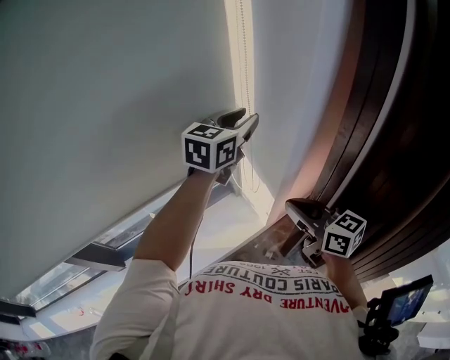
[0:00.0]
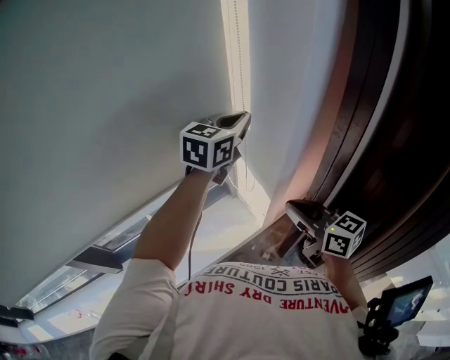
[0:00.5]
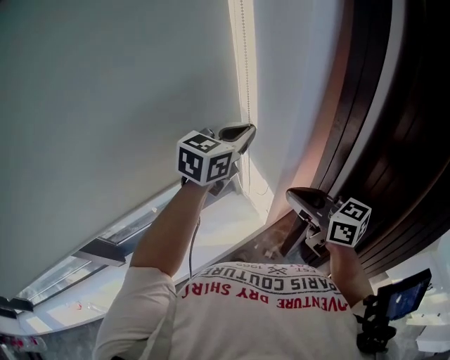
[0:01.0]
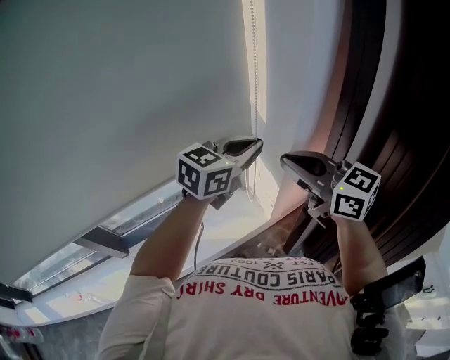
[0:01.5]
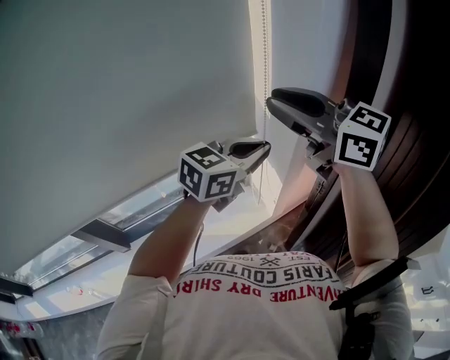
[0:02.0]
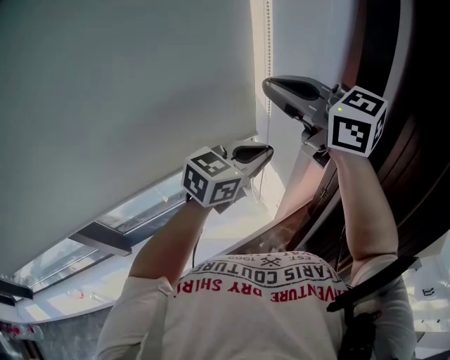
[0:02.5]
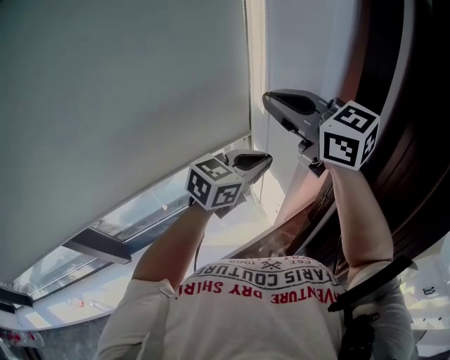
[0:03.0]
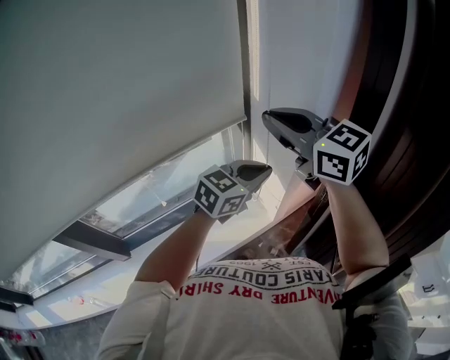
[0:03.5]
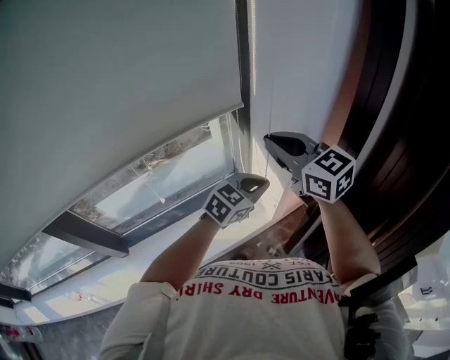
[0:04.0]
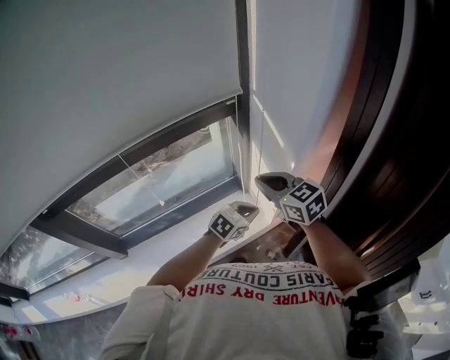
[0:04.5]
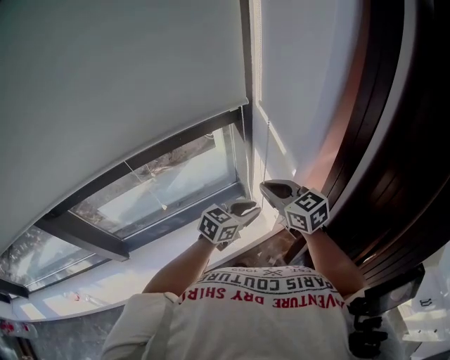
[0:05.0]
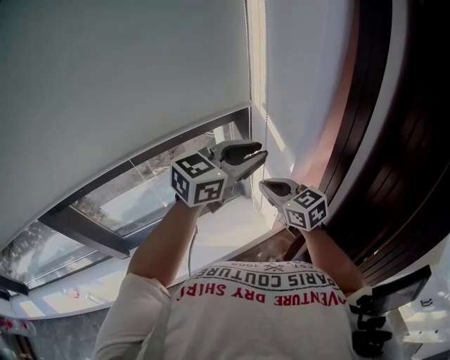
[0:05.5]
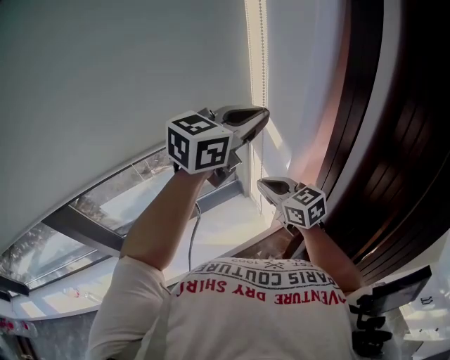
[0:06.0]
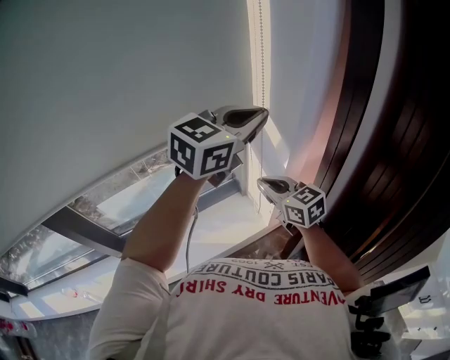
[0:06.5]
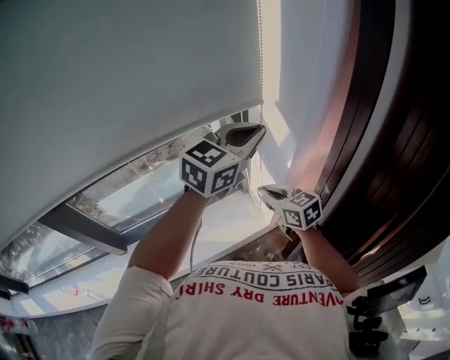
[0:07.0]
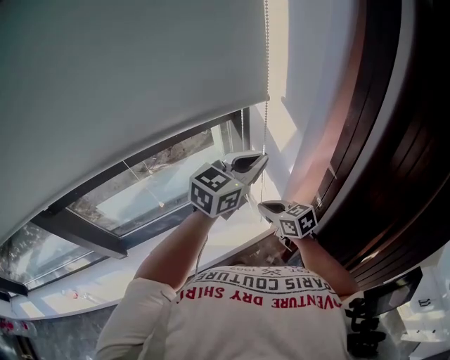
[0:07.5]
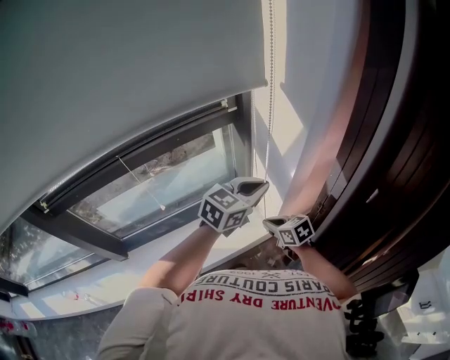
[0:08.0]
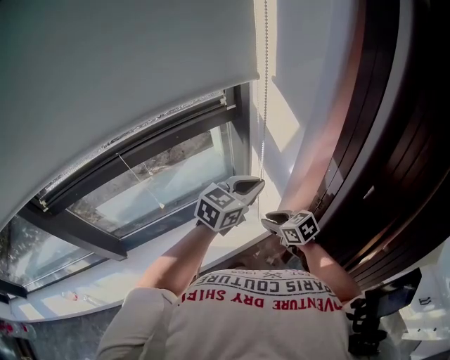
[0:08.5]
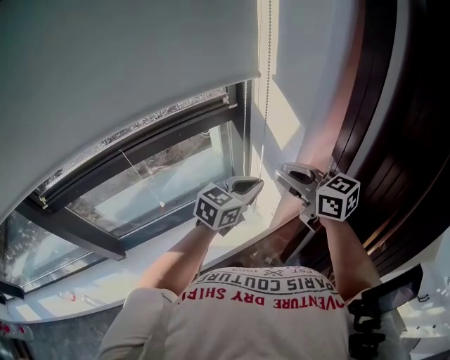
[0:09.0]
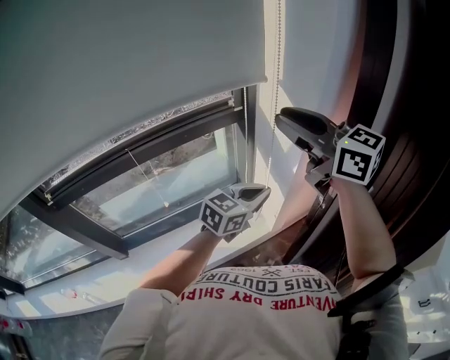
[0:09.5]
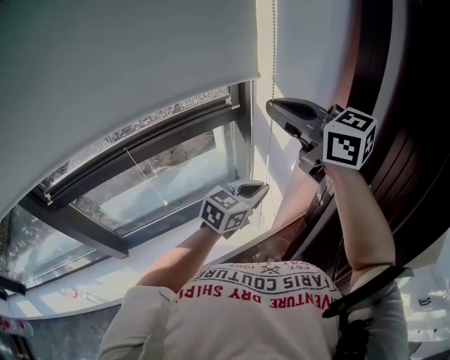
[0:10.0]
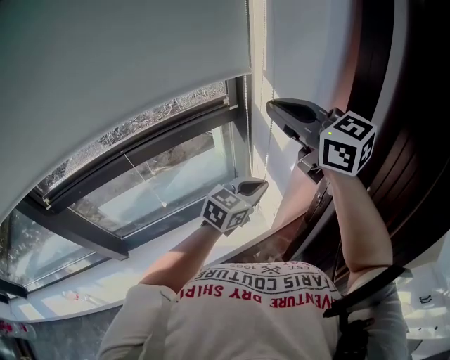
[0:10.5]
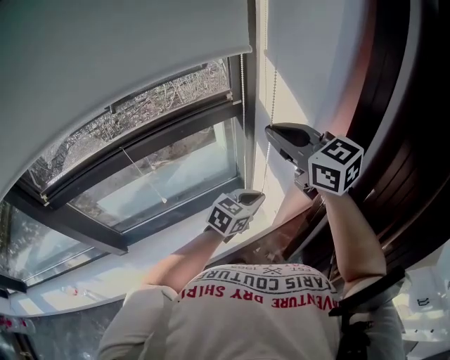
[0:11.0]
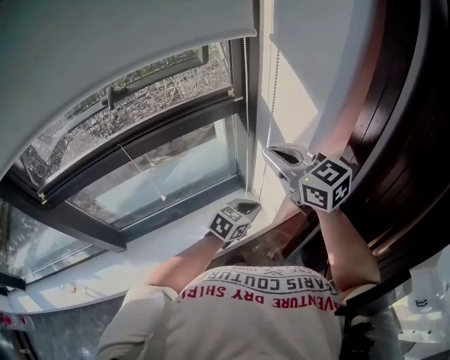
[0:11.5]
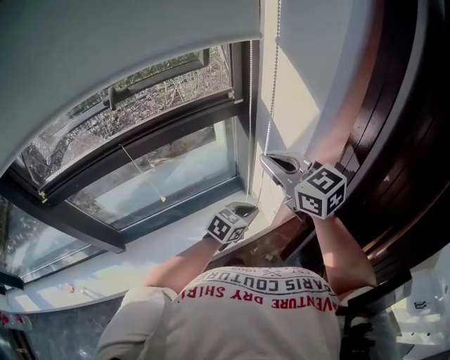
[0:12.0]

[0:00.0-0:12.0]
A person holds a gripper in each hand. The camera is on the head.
0:00.0 to 0:02.0: The right gripper is displaced upward by some 25 cm, and changes its angle by about 30 degrees. Meanwhile the left gripper goes some 15 cm backward, and closes.
0:02.0 to 0:04.0: Both grippers travel together downward, roughly 15 cm.
0:04.0 to 0:06.0: The right gripper moves downward, some 15 cm, while the left gripper travels upward by some 25 cm.
0:06.0 to 0:08.0: Both grippers travel together downward, approximately 20 cm. The right gripper turns by roughly 30 degrees.
0:08.0 to 0:10.0: The right gripper heads upward, covering about 50 cm, and tilts its fingers some 40 degrees upward.
0:10.0 to 0:12.0: The two grippers go some 15 cm downward.

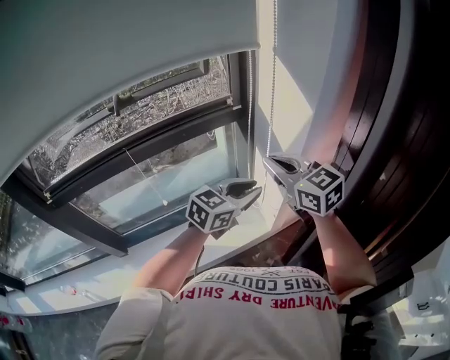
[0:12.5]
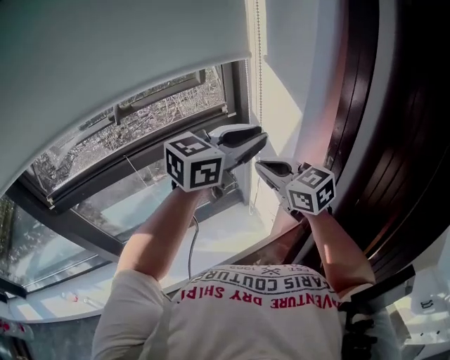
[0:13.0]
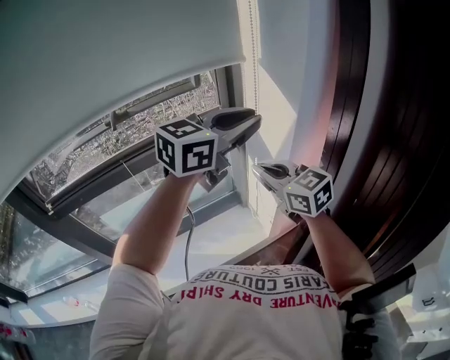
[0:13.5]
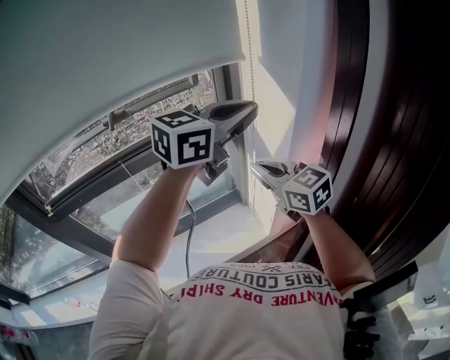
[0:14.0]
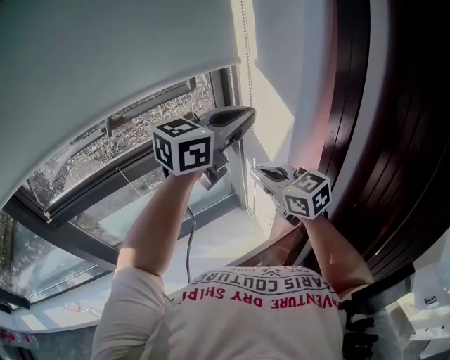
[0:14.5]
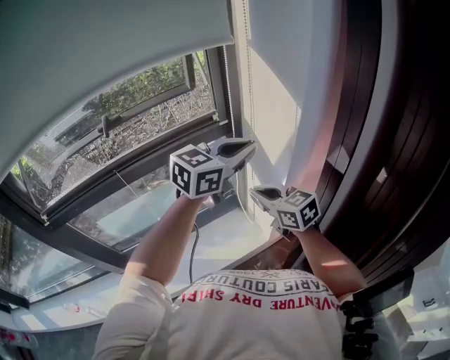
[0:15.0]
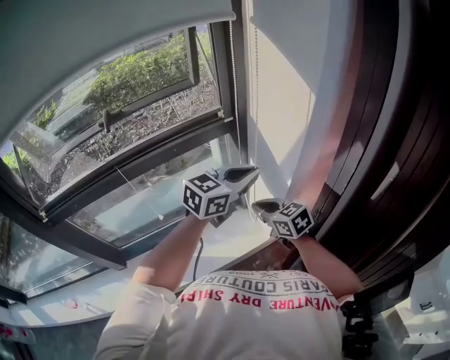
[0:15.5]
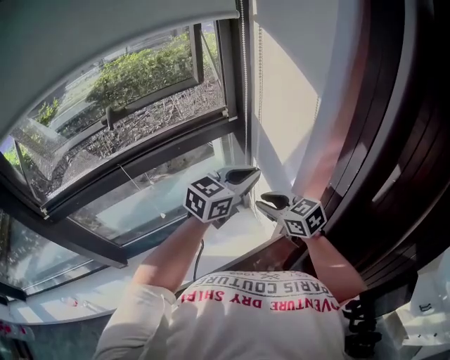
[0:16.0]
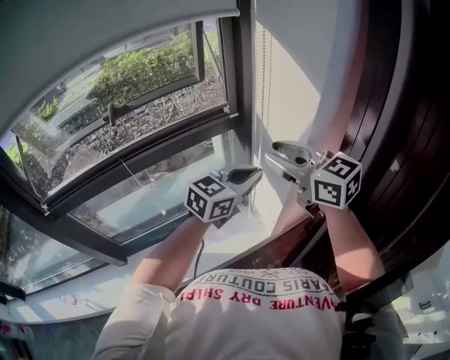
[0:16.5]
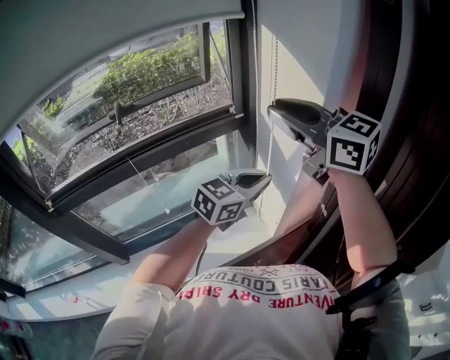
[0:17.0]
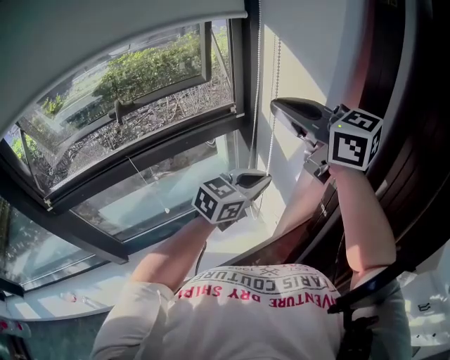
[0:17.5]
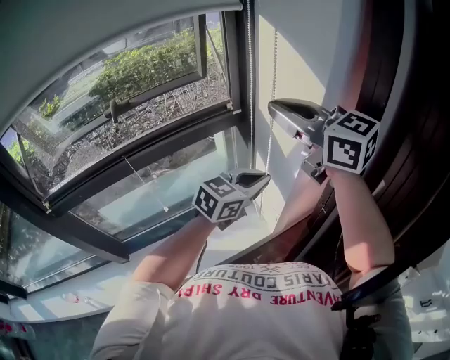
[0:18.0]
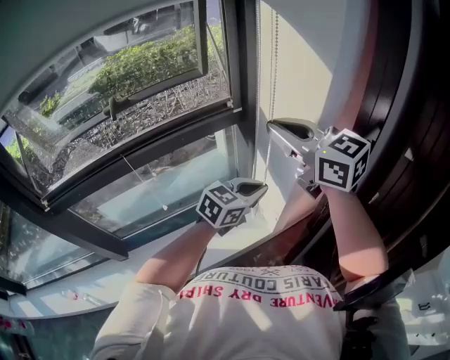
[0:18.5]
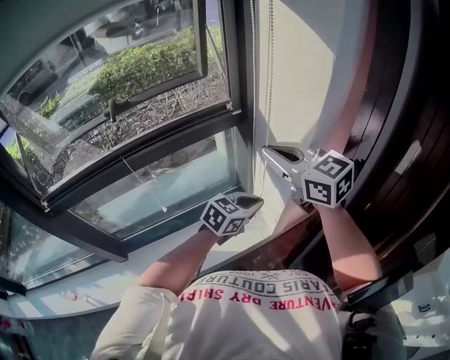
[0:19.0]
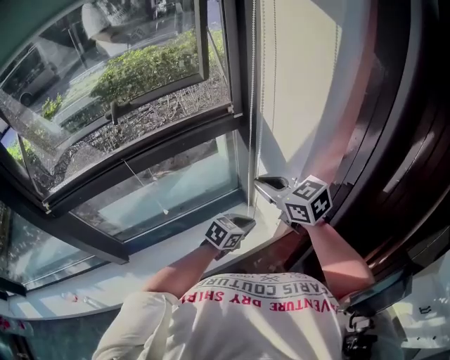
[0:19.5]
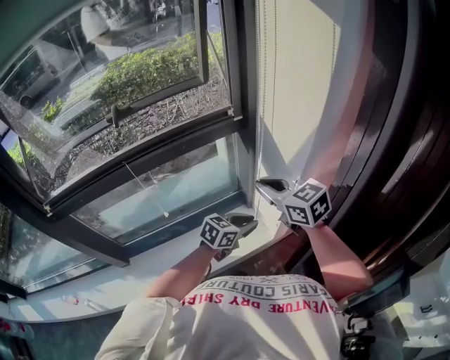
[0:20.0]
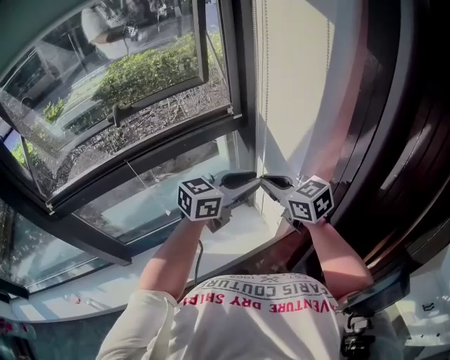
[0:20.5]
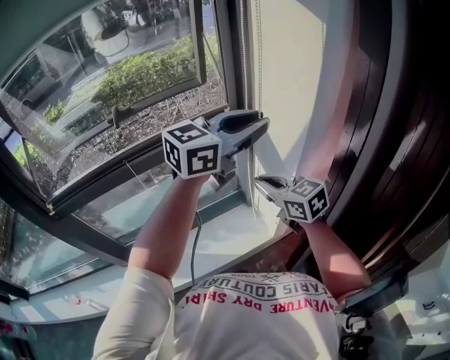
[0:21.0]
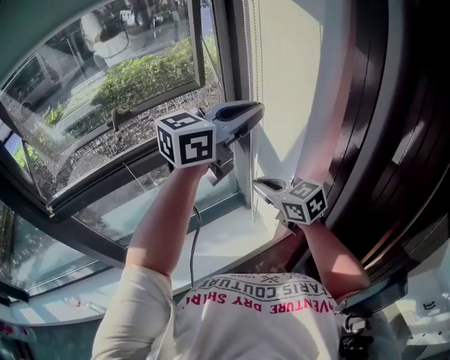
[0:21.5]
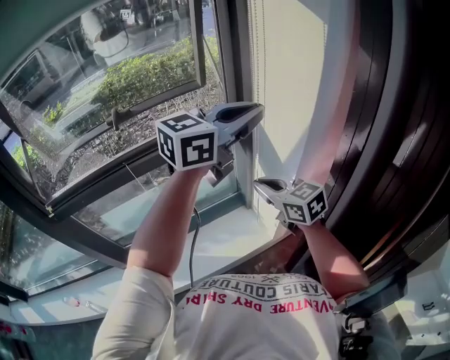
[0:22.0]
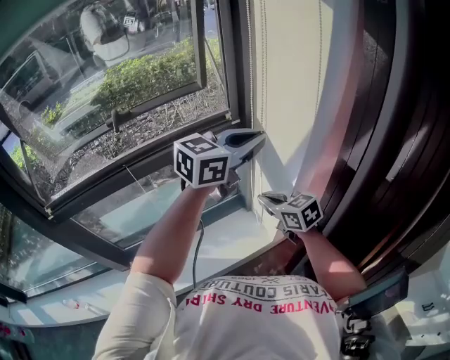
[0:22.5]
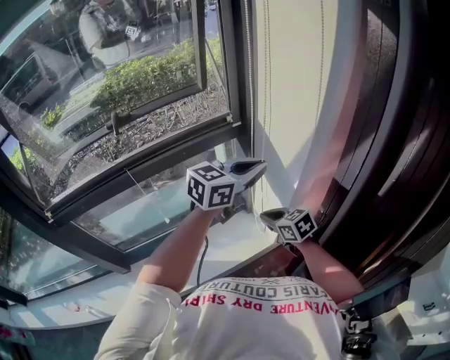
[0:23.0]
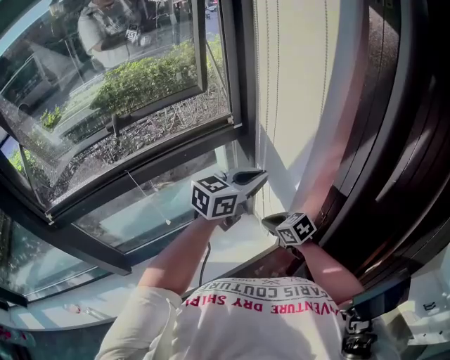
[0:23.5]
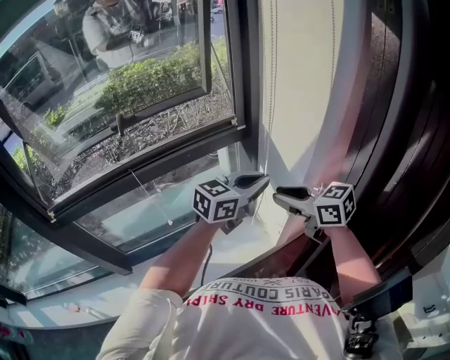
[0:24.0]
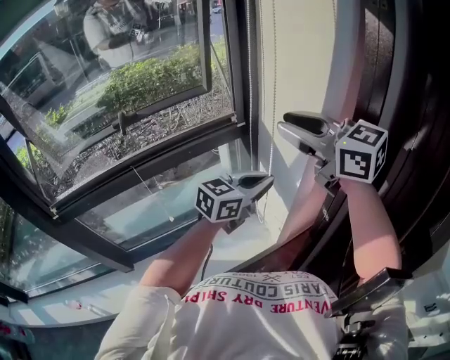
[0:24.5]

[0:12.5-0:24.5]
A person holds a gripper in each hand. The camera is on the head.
0:12.5 to 0:14.5: The left gripper goes approximately 25 cm upward.
0:14.5 to 0:16.5: The left gripper moves downward, approximately 20 cm; the right gripper reaches about 20 cm downward, then returns, and opens up.
0:16.5 to 0:18.5: The right gripper shifts some 5 cm upward, and closes its fingers; the left gripper shifts some 5 cm downward.
0:18.5 to 0:20.5: The right gripper is displaced downward by about 15 cm; the left gripper goes downward and returns, approximately 15 cm each way, and opens.
0:20.5 to 0:22.5: The right gripper shifts about 10 cm downward. Meanwhile the left gripper moves upward, approximately 10 cm, and closes its fingers.
0:22.5 to 0:24.5: The right gripper heads upward, covering some 30 cm, changes its angle by some 30 degrees, and opens; the left gripper moves downward, approximately 10 cm.

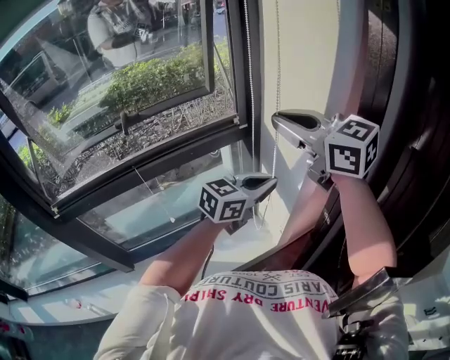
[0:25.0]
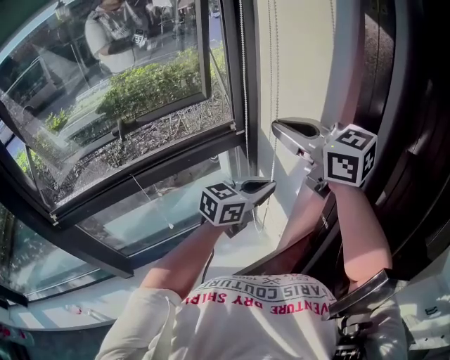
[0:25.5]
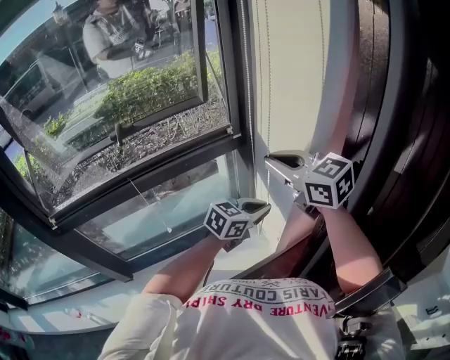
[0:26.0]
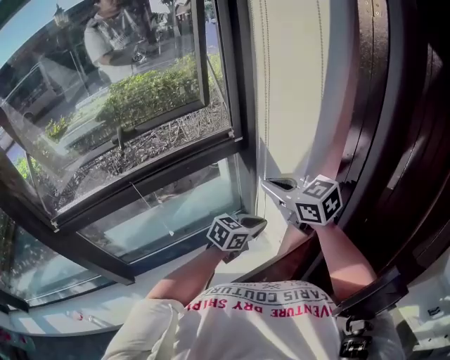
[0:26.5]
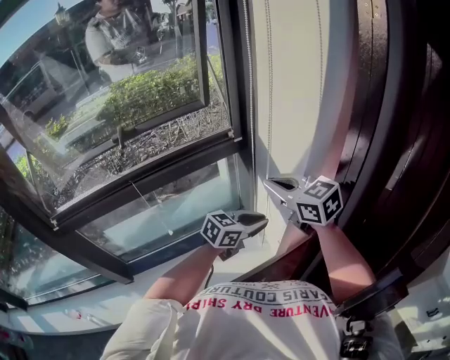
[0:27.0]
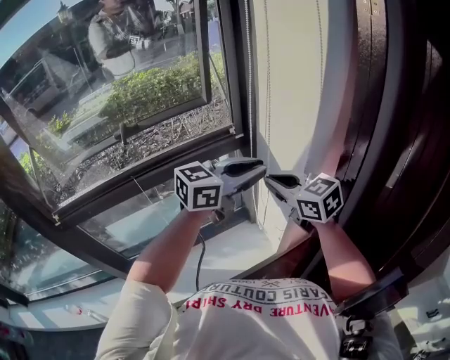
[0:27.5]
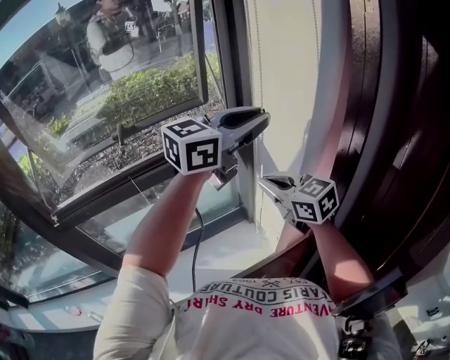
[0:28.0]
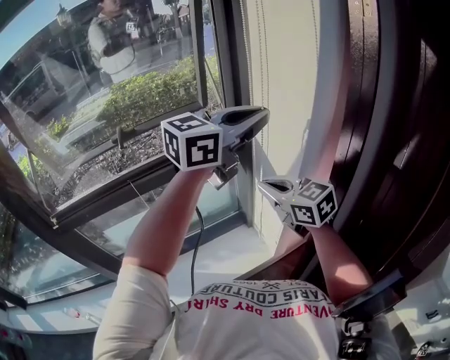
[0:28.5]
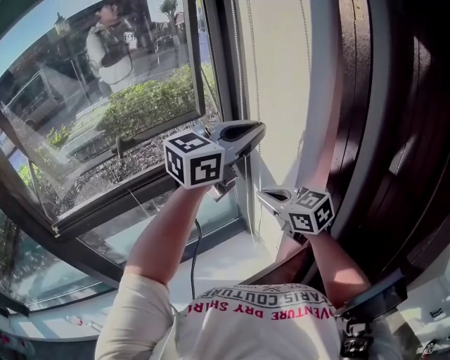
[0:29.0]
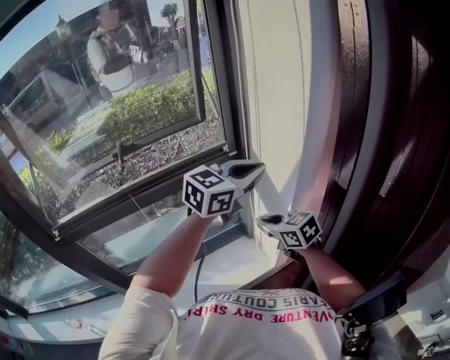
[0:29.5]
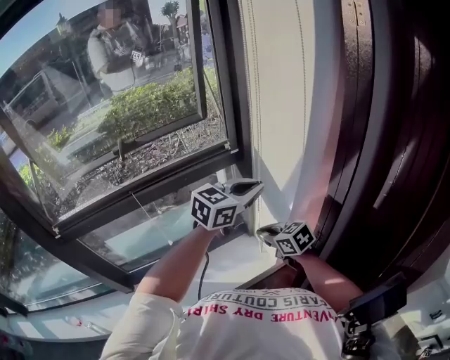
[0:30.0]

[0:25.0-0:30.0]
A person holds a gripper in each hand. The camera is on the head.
0:25.0 to 0:27.5: The right gripper is displaced downward by some 15 cm; the left gripper reaches about 15 cm downward, then returns.
0:27.5 to 0:30.0: The left gripper travels upward and back again, roughly 15 cm each way; the right gripper moves downward, approximately 20 cm, and turns by roughly 20 degrees.
